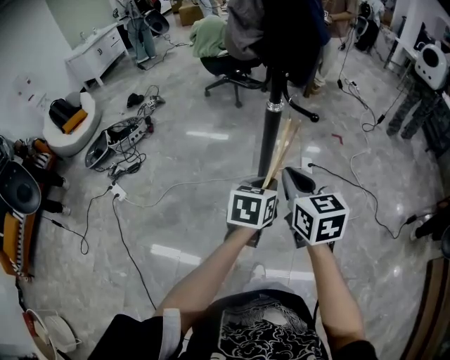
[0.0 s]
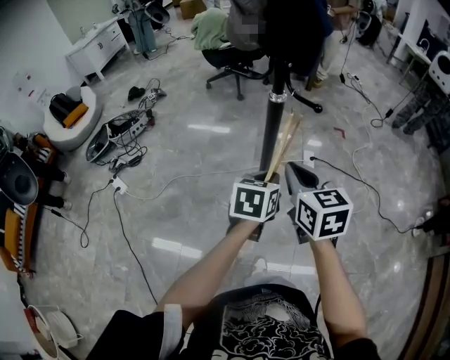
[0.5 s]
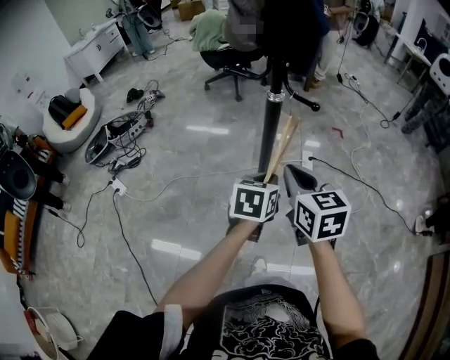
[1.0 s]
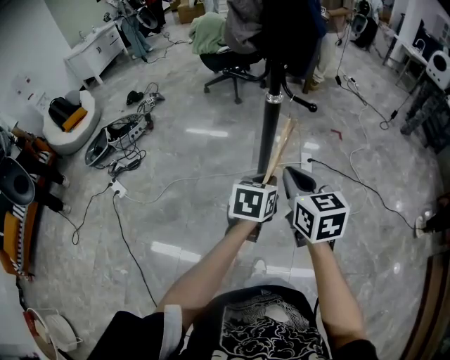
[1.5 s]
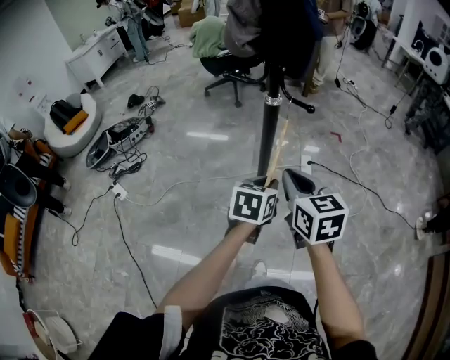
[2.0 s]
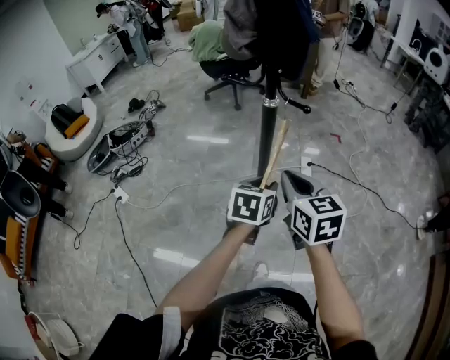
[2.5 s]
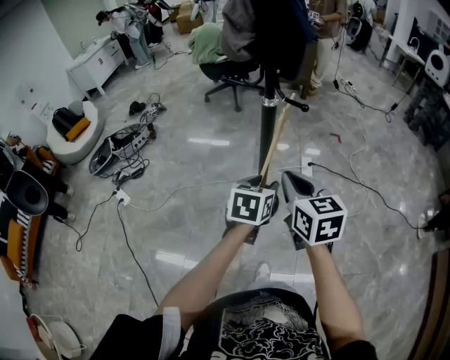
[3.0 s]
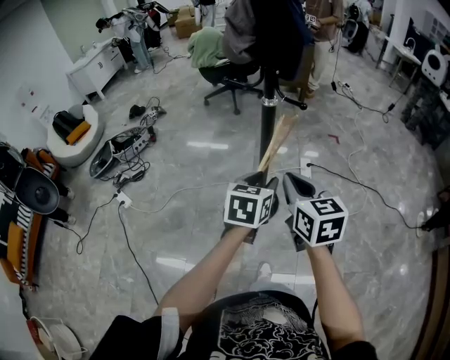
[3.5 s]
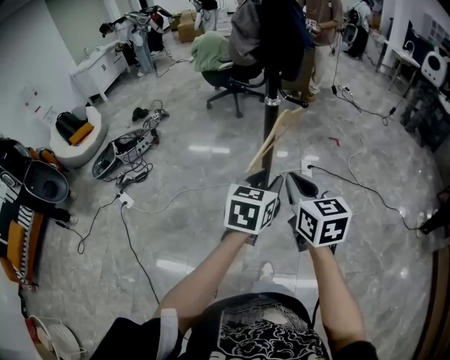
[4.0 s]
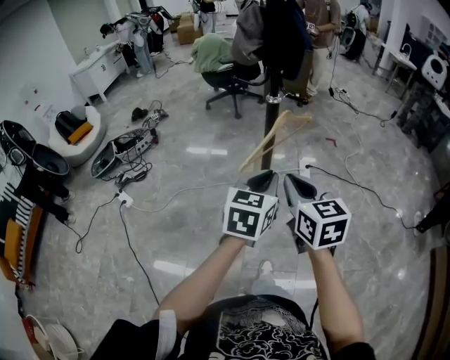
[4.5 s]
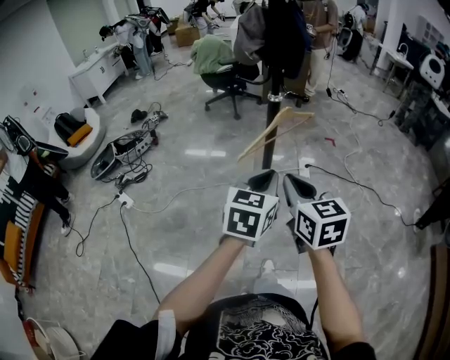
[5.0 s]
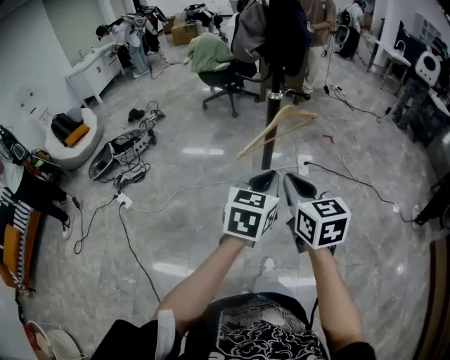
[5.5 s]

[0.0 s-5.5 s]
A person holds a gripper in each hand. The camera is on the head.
0.0 to 2.0 s: The grippers make only small movements.
2.0 to 3.5 s: The right gripper heads backward, covering about 5 cm. The left gripper shifts by some 5 cm, and opens.
3.5 to 5.5 s: The right gripper heads backward, covering approximately 10 cm. The left gripper shifts about 10 cm backward and upward, and closes its fingers.

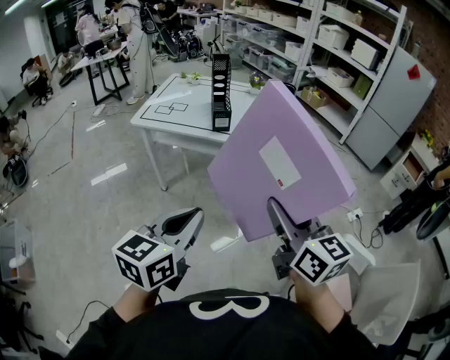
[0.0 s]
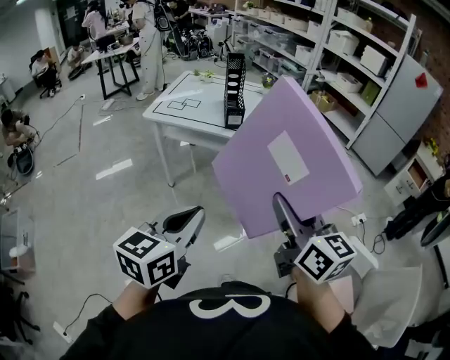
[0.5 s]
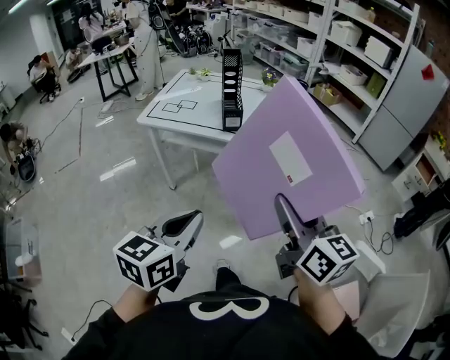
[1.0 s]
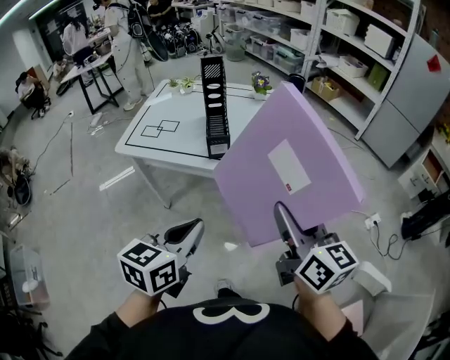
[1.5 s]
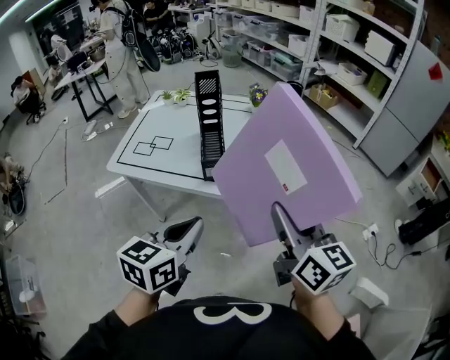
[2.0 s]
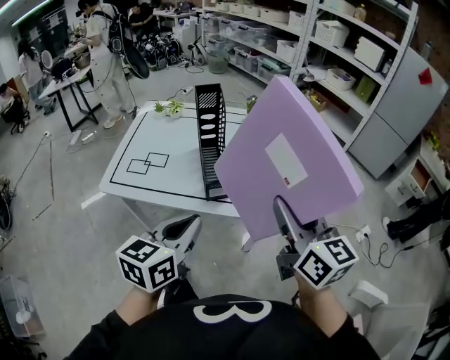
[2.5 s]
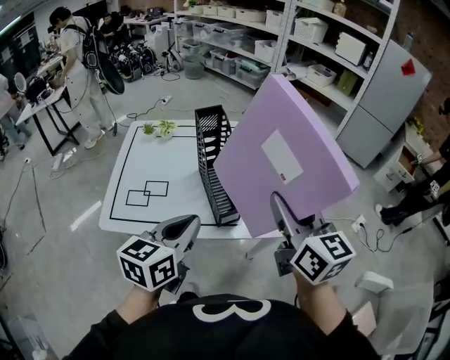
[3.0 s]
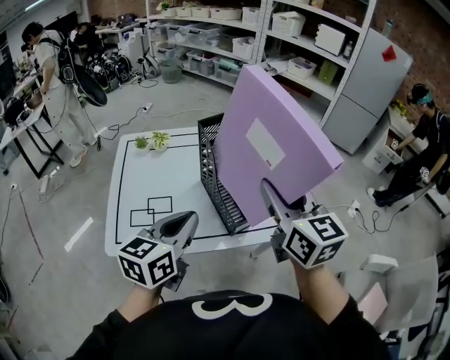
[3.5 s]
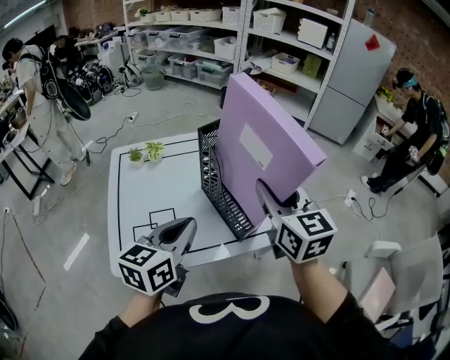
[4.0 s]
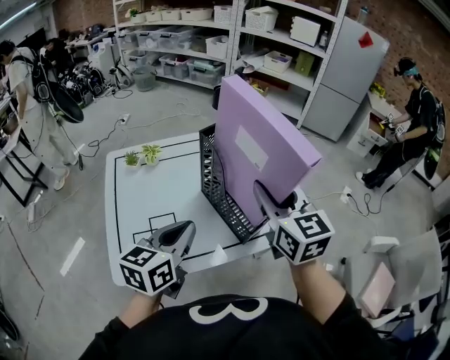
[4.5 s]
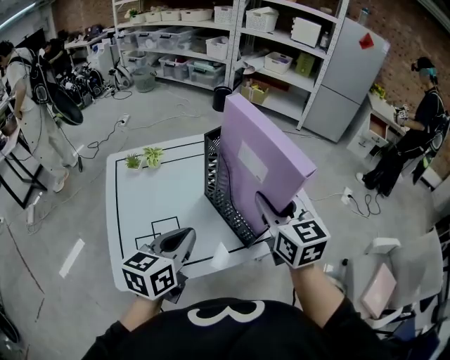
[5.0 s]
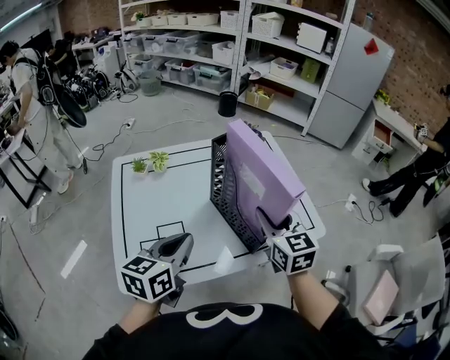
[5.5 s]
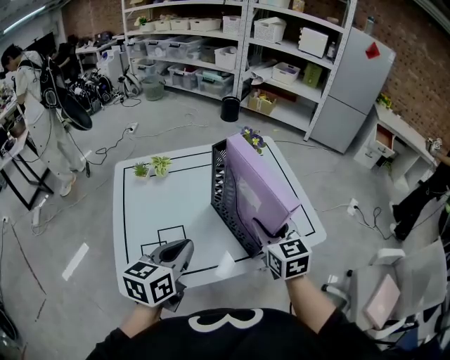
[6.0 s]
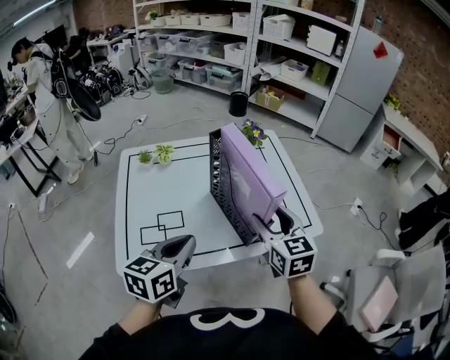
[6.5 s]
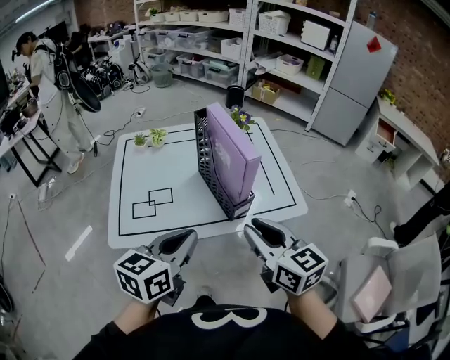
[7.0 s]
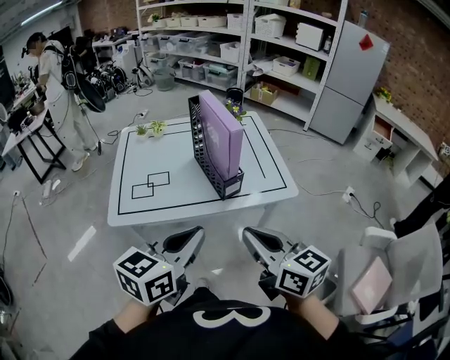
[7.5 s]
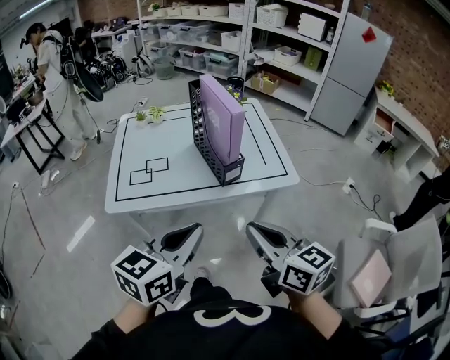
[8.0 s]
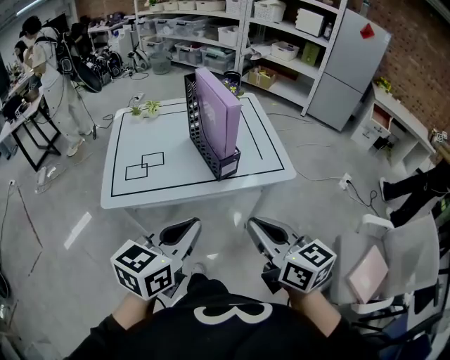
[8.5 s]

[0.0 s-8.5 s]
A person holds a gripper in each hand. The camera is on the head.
0.0 to 2.0 s: The grippers both shift forward by approximately 35 cm.
2.0 to 4.0 s: The right gripper moves roughly 35 cm, and rotates approximately 30 degrees. The left gripper ends up approximately 35 cm from where it was, and swivels about 20 degrees.
4.0 to 6.5 s: The right gripper is displaced downward by approximately 10 cm, and opens up.
6.5 to 8.5 s: The right gripper moves backward, about 30 cm, turns by approximately 30 degrees, and closes its fingers. Meanwhile the left gripper travels backward and to the right by some 25 cm.

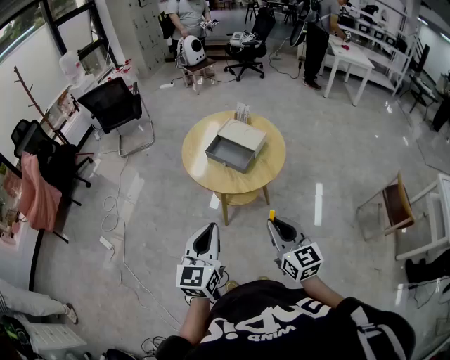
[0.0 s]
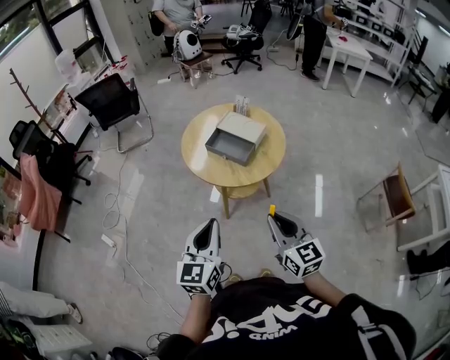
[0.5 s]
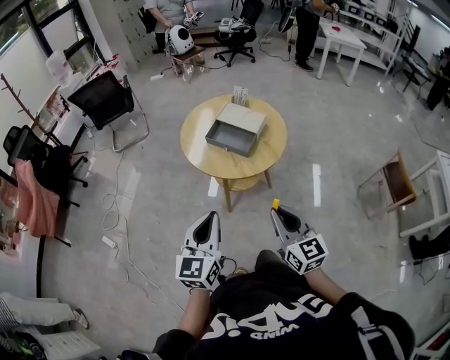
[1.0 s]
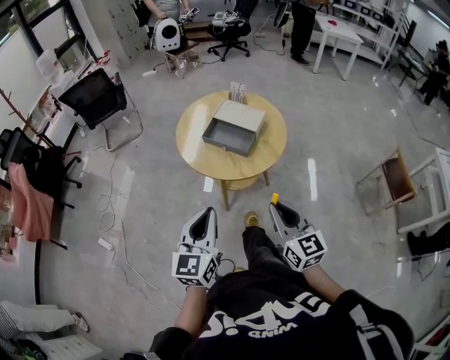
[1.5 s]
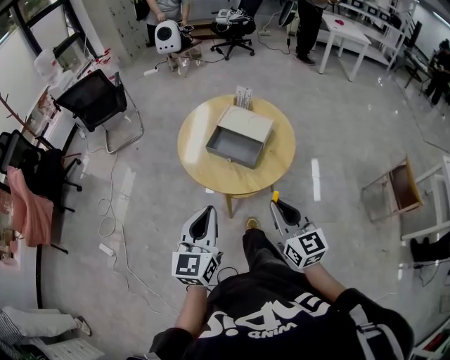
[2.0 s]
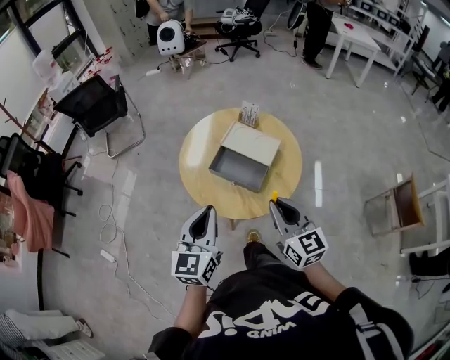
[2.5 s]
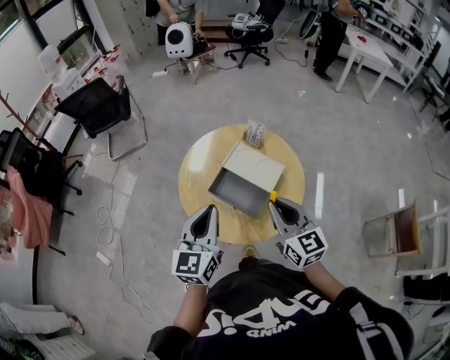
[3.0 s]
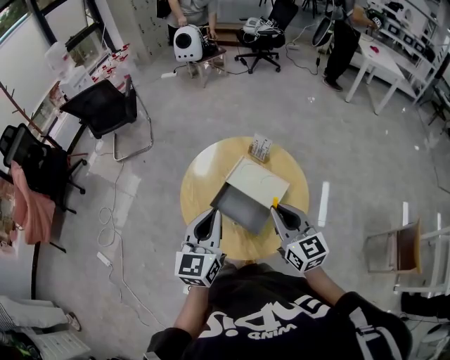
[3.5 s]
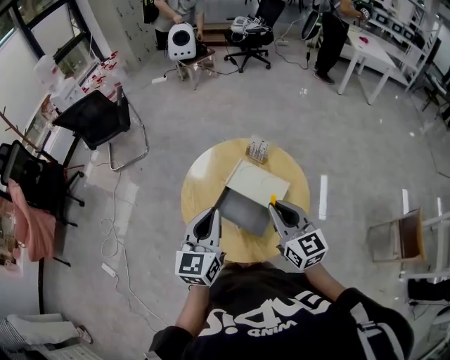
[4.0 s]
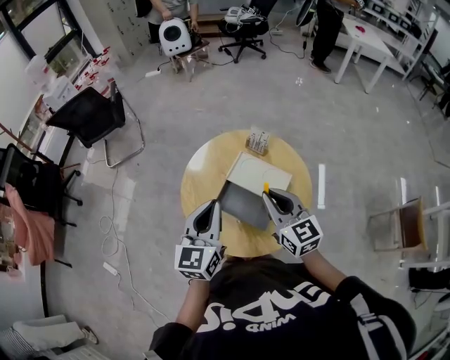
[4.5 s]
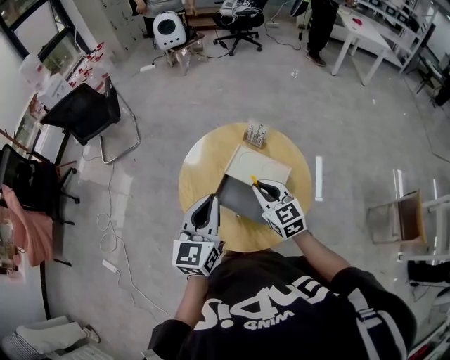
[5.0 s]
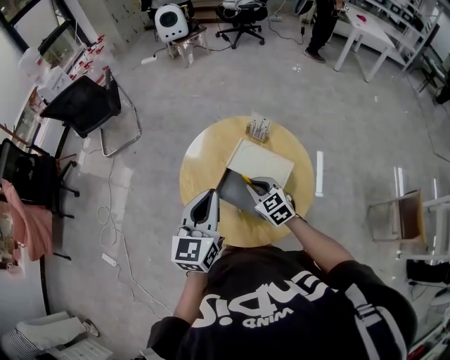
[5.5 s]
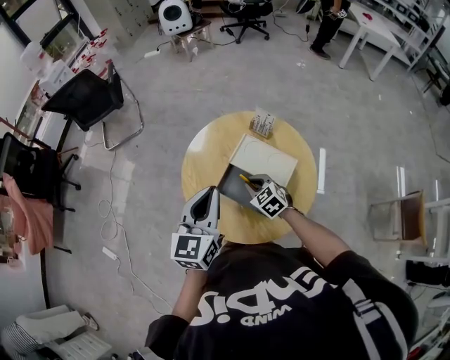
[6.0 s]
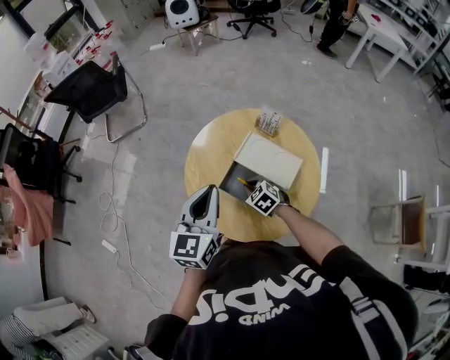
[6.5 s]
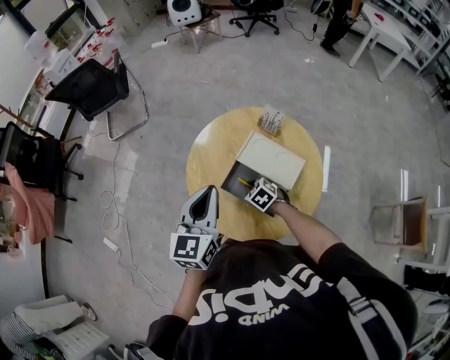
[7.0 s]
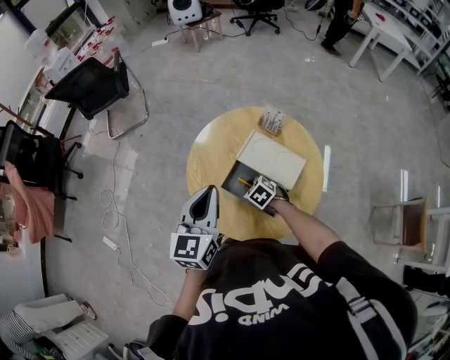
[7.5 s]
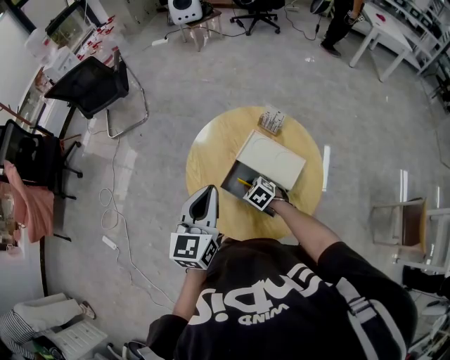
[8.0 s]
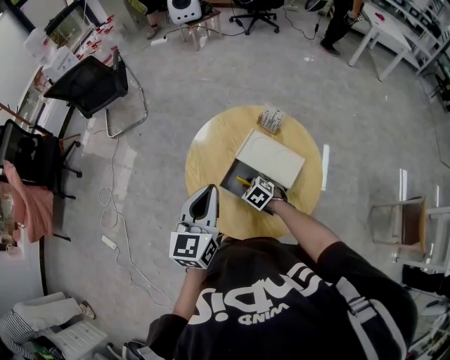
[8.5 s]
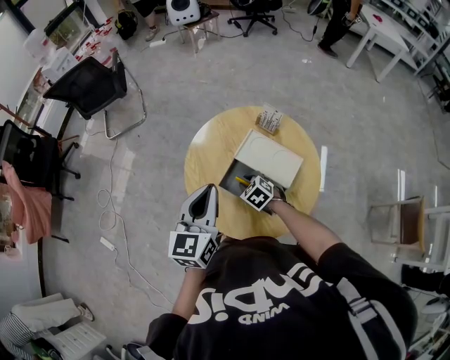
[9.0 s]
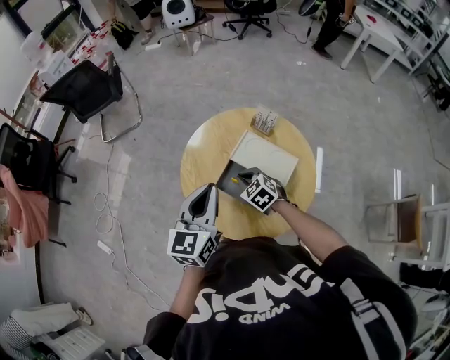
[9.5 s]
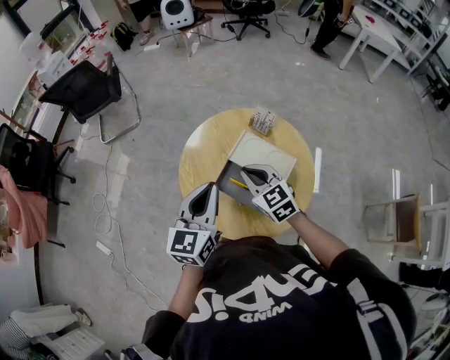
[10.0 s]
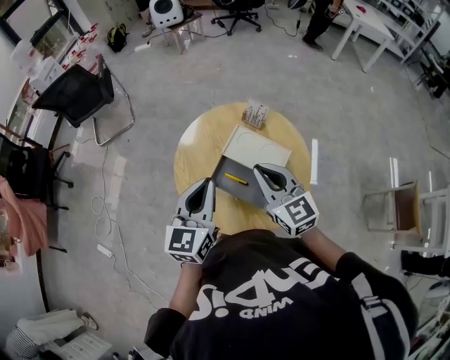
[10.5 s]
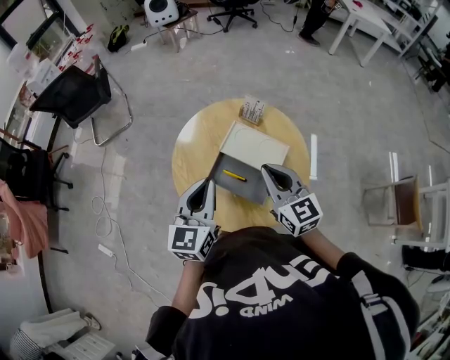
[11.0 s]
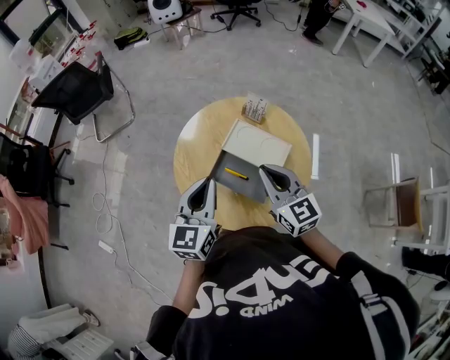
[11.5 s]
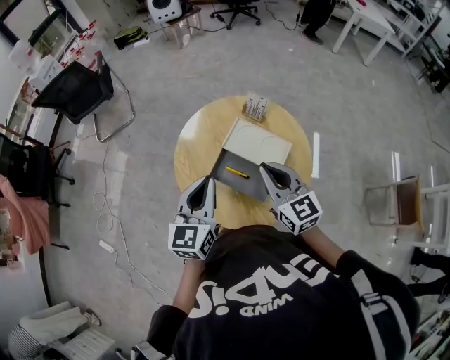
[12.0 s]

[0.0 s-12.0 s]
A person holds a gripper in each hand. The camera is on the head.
0.0 to 2.0 s: The two grippers go roughly 15 cm forward.
2.0 to 4.0 s: Both grippers move forward, about 30 cm.
4.0 to 6.0 s: The right gripper goes approximately 25 cm downward, and tips its fingers downward by about 40 degrees.
6.0 to 8.0 s: The right gripper shifts some 10 cm downward.
8.0 to 10.0 s: The right gripper is displaced upward by roughly 20 cm, and angles its fingers upward, by roughly 30 degrees.
10.0 to 12.0 s: The right gripper travels to the right and upward by some 10 cm, and rotates about 20 degrees.

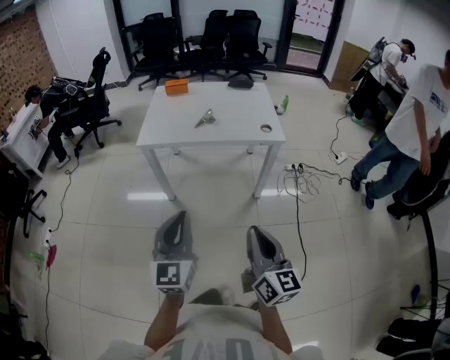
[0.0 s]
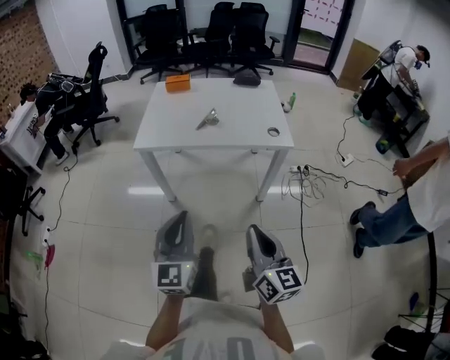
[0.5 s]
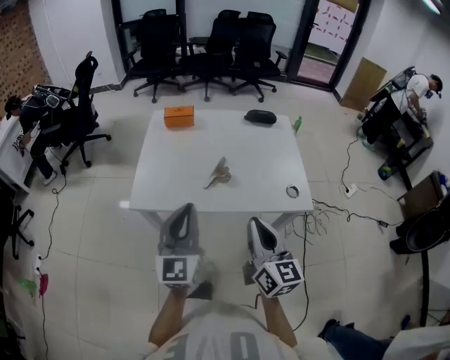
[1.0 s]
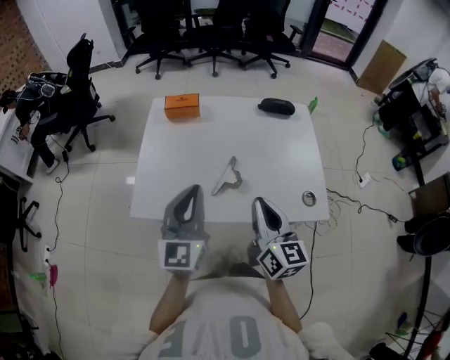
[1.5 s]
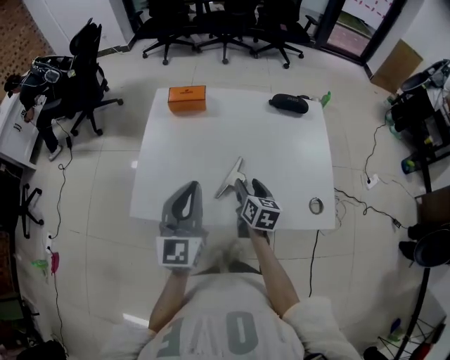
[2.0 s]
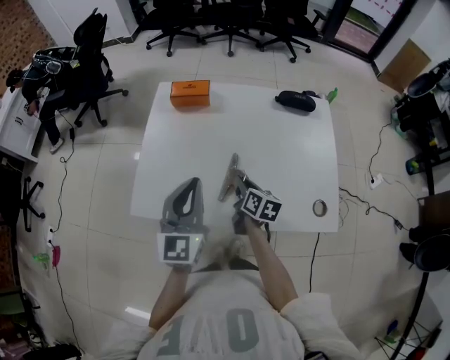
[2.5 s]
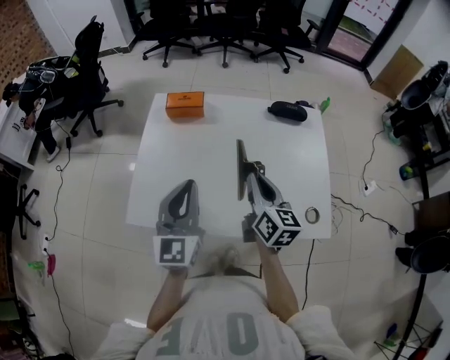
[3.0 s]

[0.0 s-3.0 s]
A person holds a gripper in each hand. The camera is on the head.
0.0 to 1.5 s: The pair of grippers is taken forward, about 50 cm.
1.5 to 3.0 s: The left gripper is displaced forward by roughly 5 cm. The right gripper goes some 15 cm forward, reaches approximately 20 cm downward, then returns, and opens, then closes again.
